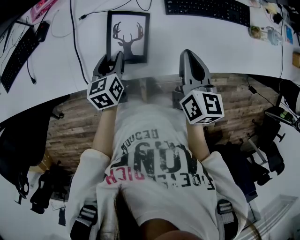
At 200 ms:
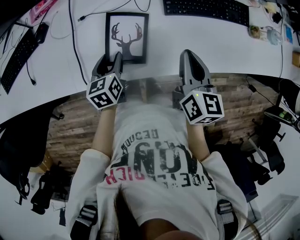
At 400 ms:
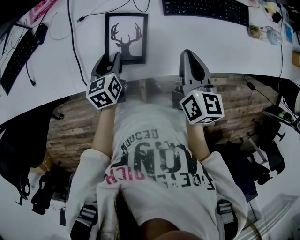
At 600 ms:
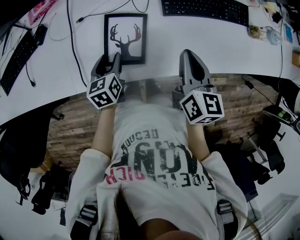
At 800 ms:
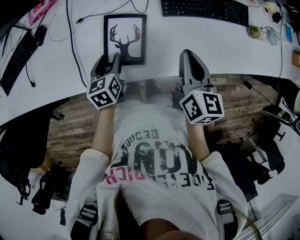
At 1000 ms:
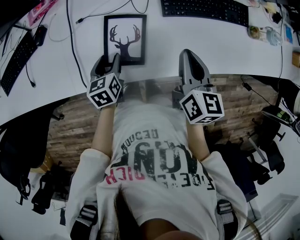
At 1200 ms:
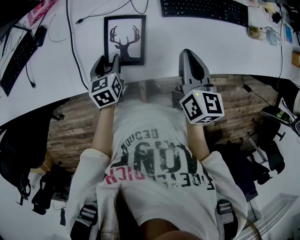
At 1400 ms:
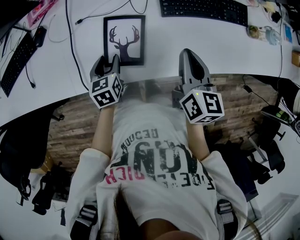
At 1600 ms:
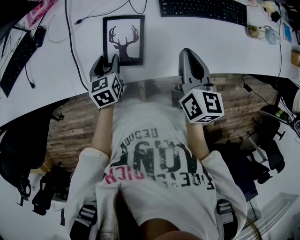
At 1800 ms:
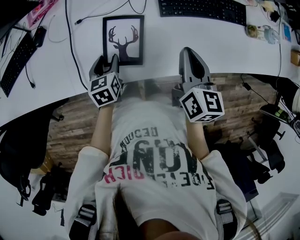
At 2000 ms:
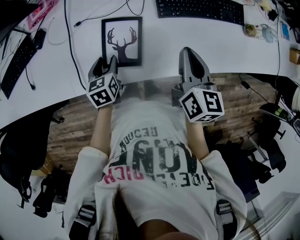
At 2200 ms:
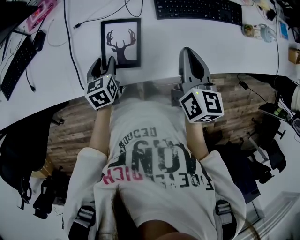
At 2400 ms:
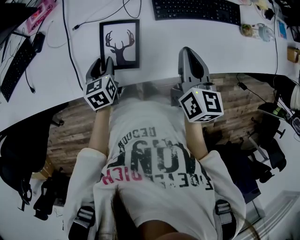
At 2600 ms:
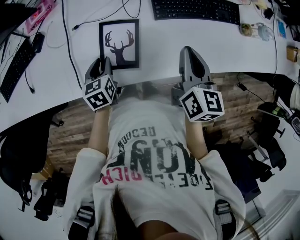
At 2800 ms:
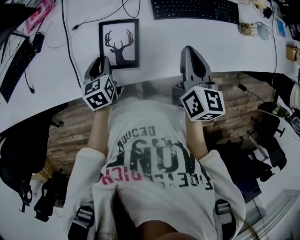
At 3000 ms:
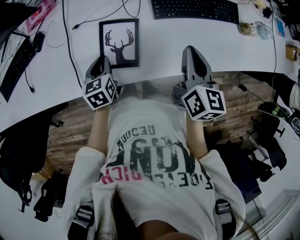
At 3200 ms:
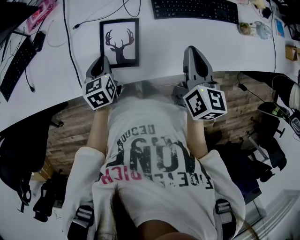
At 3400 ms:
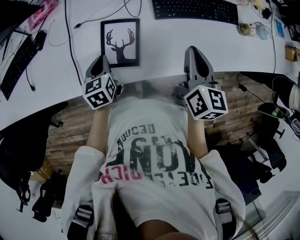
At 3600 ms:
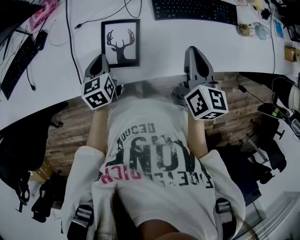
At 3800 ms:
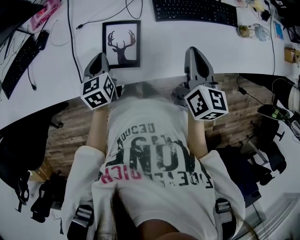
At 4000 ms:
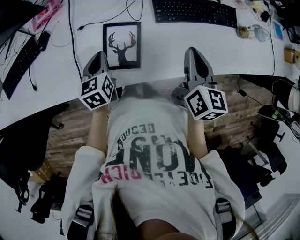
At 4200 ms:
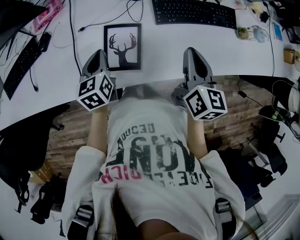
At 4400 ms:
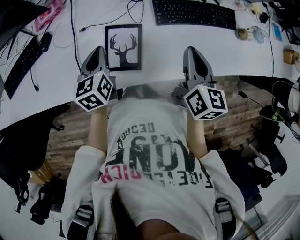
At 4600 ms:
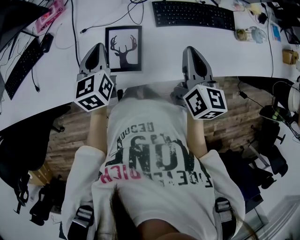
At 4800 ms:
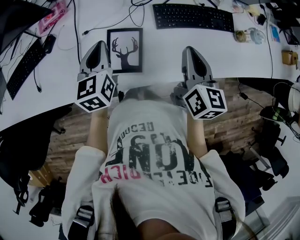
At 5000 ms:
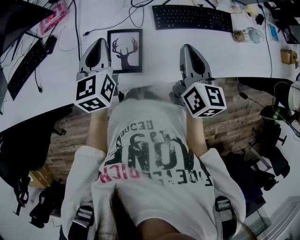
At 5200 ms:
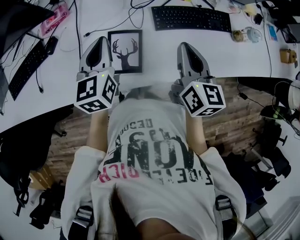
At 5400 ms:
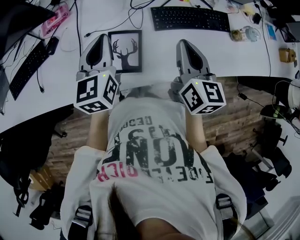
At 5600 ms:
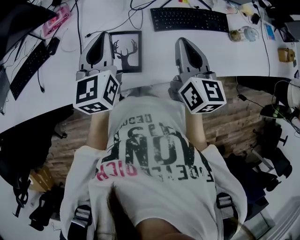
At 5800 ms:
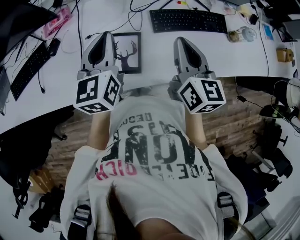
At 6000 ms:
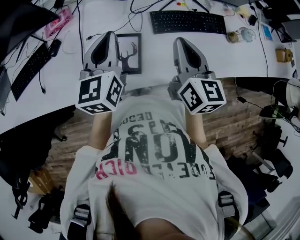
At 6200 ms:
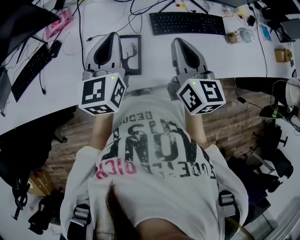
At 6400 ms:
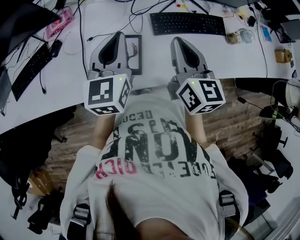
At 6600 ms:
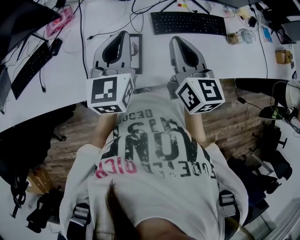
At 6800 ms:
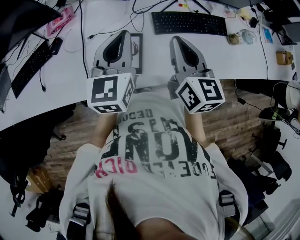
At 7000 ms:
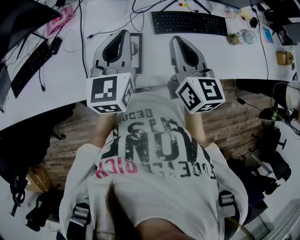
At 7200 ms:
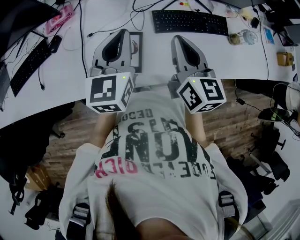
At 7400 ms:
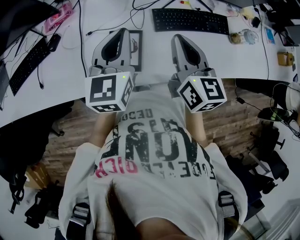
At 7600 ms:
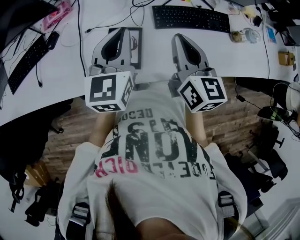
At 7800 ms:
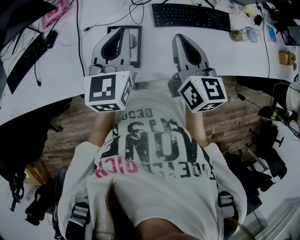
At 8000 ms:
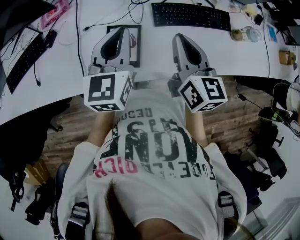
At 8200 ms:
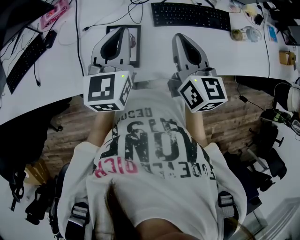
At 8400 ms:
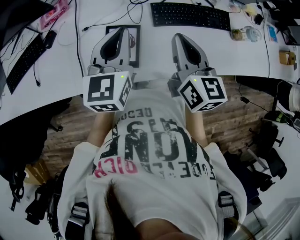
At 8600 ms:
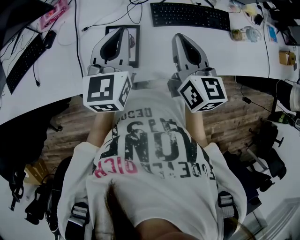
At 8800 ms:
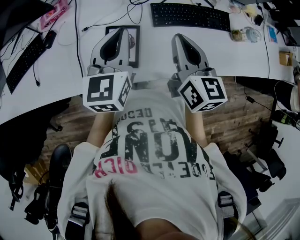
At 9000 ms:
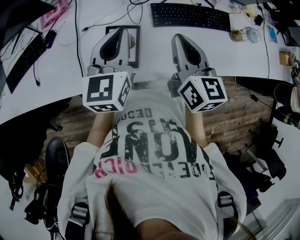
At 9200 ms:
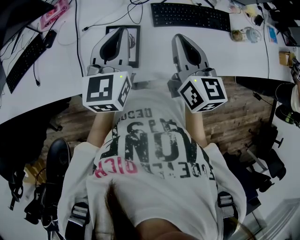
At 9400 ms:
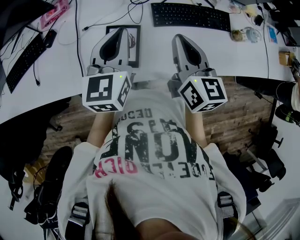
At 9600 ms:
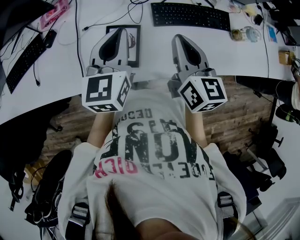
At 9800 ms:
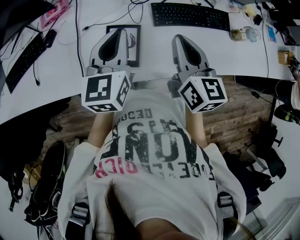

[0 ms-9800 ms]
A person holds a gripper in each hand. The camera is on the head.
0 ms to 1400 ms: The grippers move only a little.
1400 ms to 2800 ms: The left gripper closes up.
2800 ms to 4200 ms: The left gripper travels upward by approximately 5 cm, and closes up.
4200 ms to 5600 ms: The right gripper moves upward, roughly 5 cm, while the left gripper moves upward, roughly 15 cm, and turns by roughly 20 degrees.
5600 ms to 7000 ms: The left gripper changes place by roughly 5 cm.
7000 ms to 8400 ms: There are only small adjustments of the grippers.
8400 ms to 9800 ms: The two grippers keep their place.

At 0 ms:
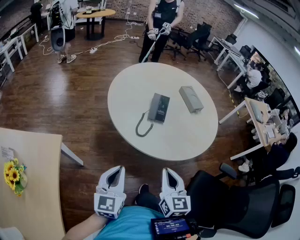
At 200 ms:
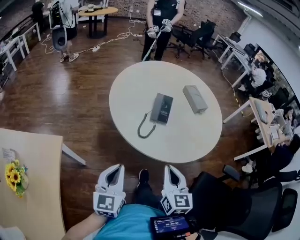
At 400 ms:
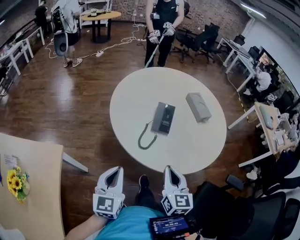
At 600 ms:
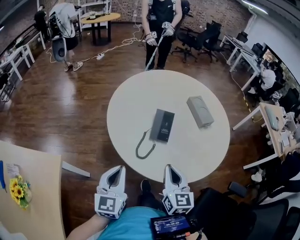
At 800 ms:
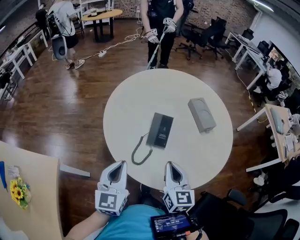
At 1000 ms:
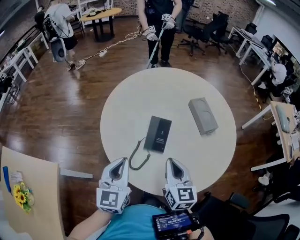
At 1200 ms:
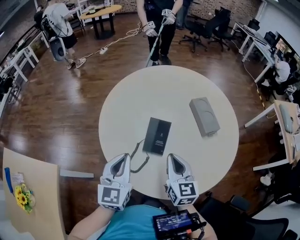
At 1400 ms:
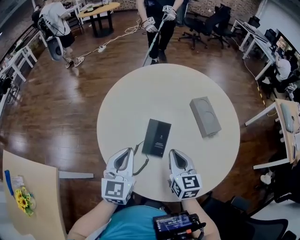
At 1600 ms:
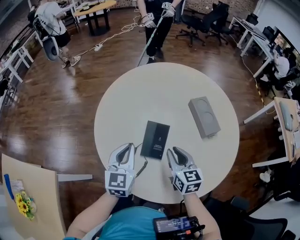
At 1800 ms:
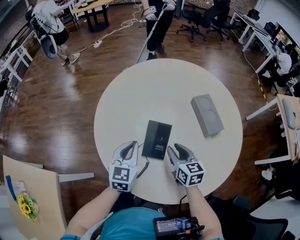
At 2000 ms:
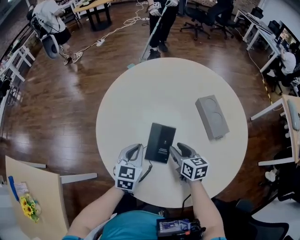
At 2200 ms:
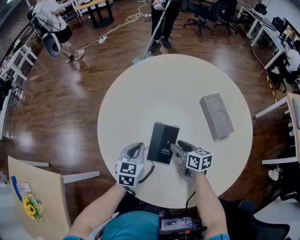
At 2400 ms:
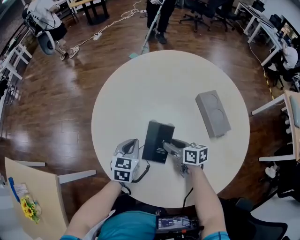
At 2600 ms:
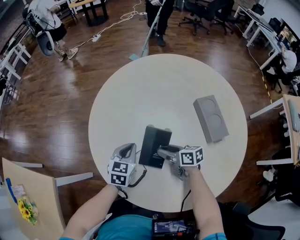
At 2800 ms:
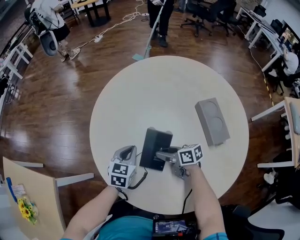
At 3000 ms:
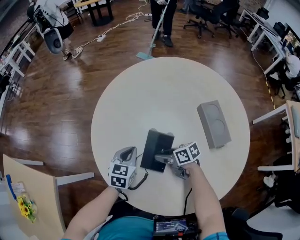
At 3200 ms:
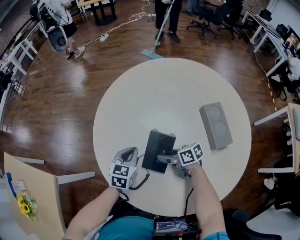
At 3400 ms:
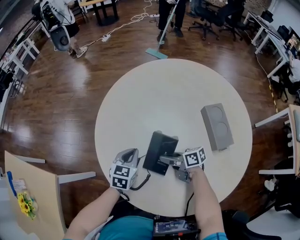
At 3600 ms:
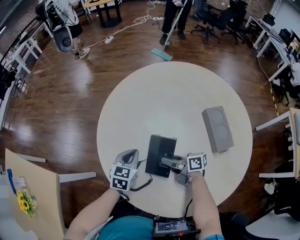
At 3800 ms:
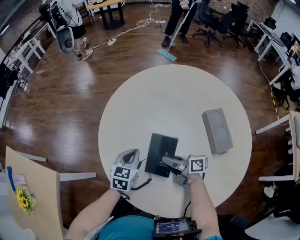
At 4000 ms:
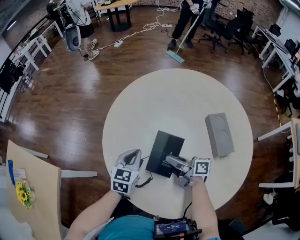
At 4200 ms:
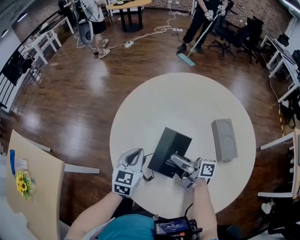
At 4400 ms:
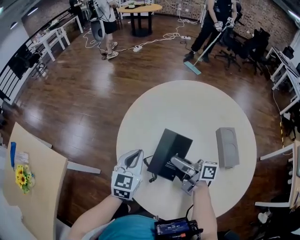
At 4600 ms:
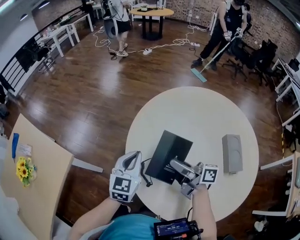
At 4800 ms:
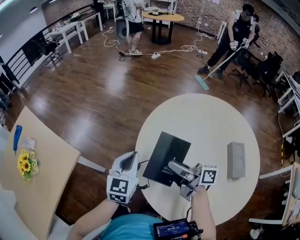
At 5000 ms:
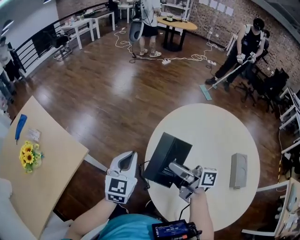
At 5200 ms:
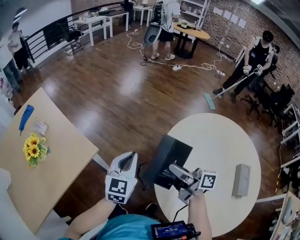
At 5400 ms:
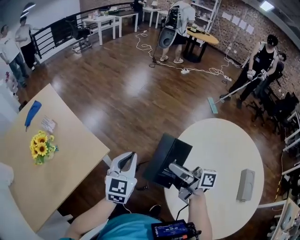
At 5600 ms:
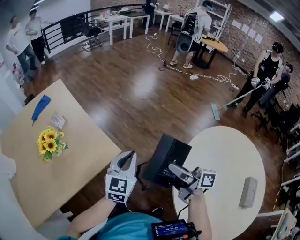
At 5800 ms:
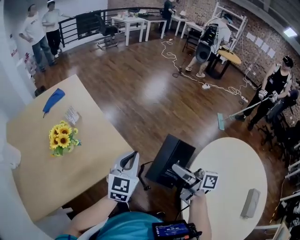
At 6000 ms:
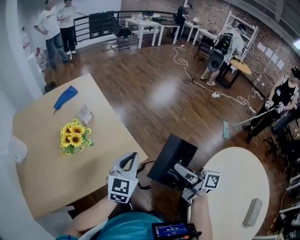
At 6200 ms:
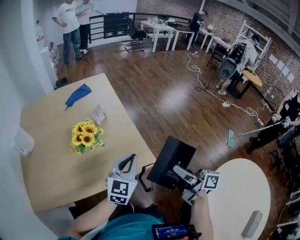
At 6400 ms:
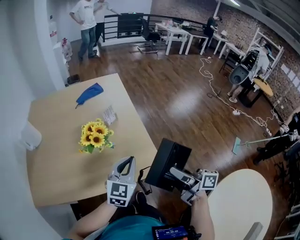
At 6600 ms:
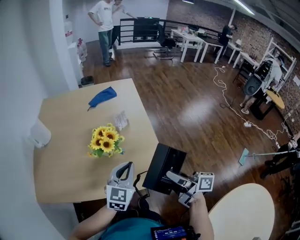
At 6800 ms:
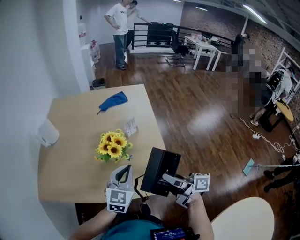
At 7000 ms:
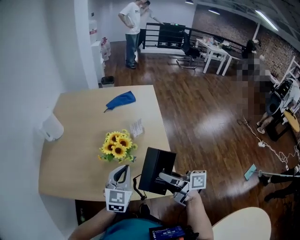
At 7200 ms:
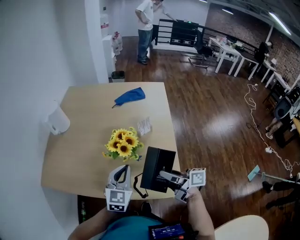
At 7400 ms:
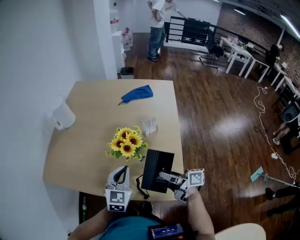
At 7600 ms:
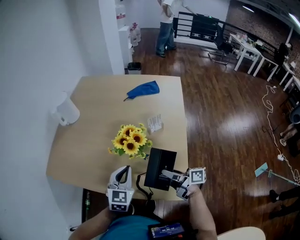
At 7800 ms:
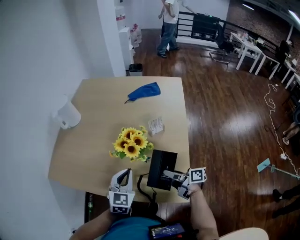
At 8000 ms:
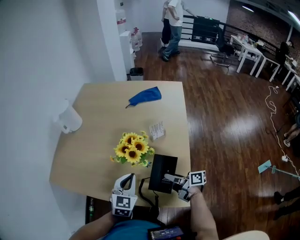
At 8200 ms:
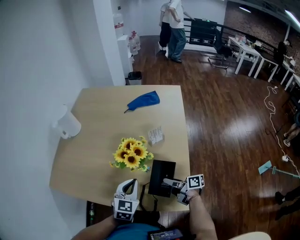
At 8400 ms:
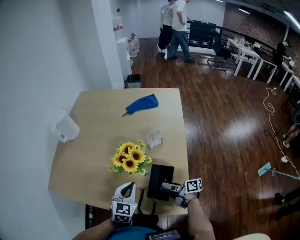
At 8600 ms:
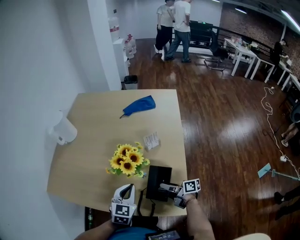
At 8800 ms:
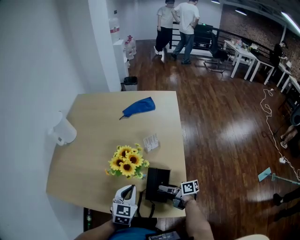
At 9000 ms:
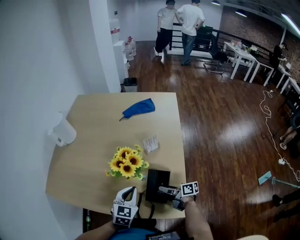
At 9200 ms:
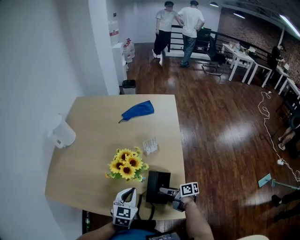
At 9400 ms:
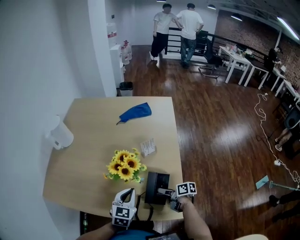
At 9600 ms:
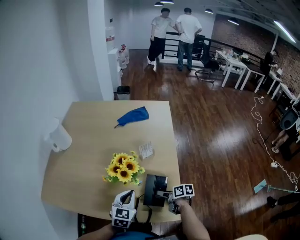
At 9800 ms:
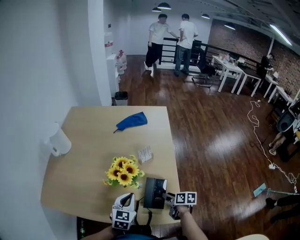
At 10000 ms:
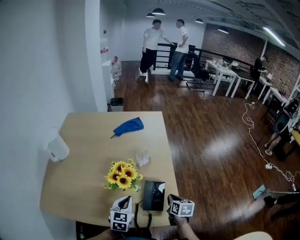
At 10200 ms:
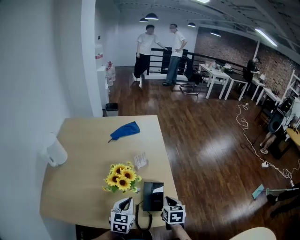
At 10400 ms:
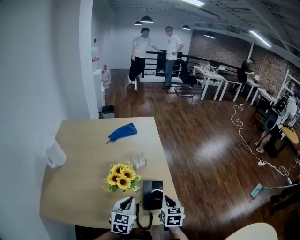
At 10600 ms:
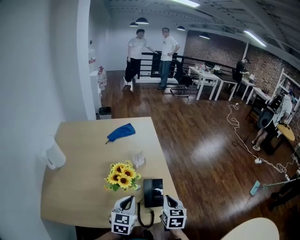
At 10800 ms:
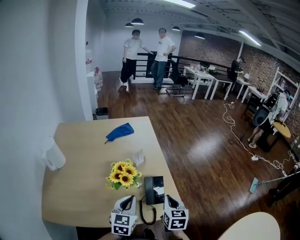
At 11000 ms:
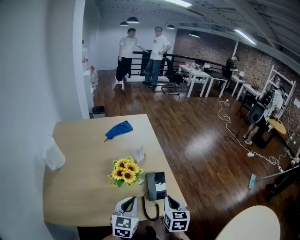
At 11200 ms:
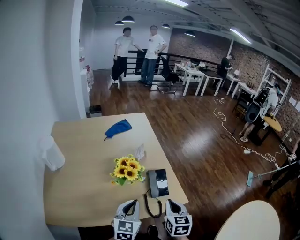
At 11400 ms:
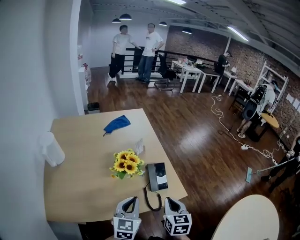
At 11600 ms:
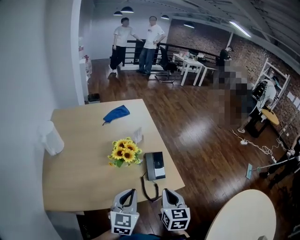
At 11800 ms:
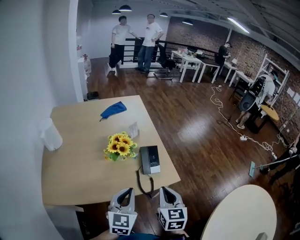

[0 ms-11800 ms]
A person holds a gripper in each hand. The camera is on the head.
0 ms to 1400 ms: The two grippers go some 35 cm forward.
1400 ms to 3000 ms: The grippers both shift downward by about 20 cm. The right gripper changes its angle by about 60 degrees, and opens up. Meanwhile the left gripper swivels about 30 degrees.
3000 ms to 4400 ms: The left gripper goes about 15 cm upward and to the left, and swivels approximately 20 degrees. Meanwhile the right gripper is displaced upward by about 20 cm, and tips its fingers upward by roughly 30 degrees.
4400 ms to 6000 ms: Both grippers are carried some 50 cm. The left gripper changes its angle by about 40 degrees; the right gripper swivels about 30 degrees.
6000 ms to 7400 ms: The right gripper moves about 35 cm, and turns by approximately 50 degrees. Meanwhile the left gripper moves some 25 cm, and swivels about 50 degrees.
7400 ms to 8800 ms: The left gripper is displaced downward by some 5 cm. Meanwhile the right gripper goes approximately 15 cm downward.
8800 ms to 10400 ms: The right gripper shifts some 15 cm upward, changes its angle by some 80 degrees, and closes; the left gripper is displaced upward by roughly 5 cm.
10400 ms to 11800 ms: Both grippers travel together backward and upward, roughly 20 cm.

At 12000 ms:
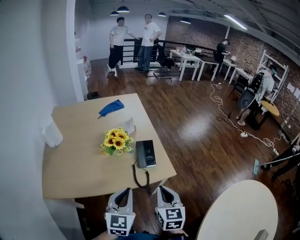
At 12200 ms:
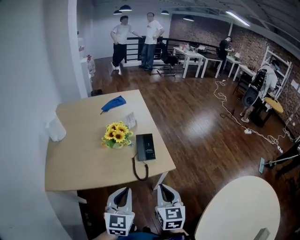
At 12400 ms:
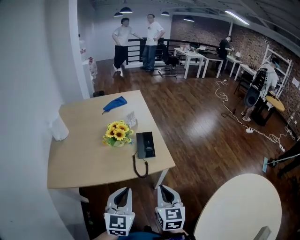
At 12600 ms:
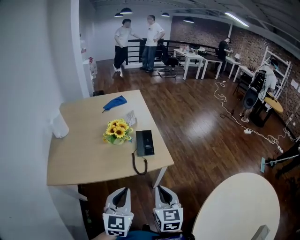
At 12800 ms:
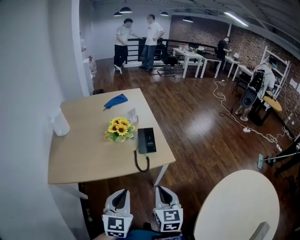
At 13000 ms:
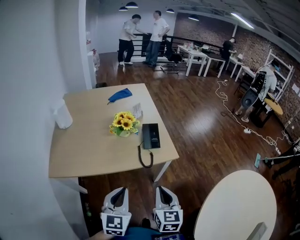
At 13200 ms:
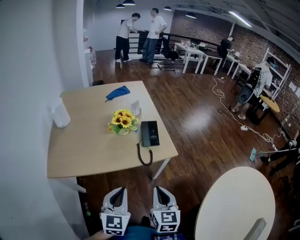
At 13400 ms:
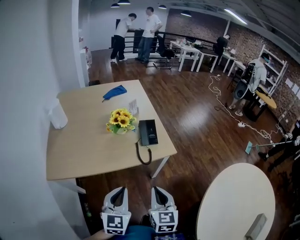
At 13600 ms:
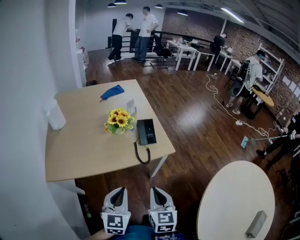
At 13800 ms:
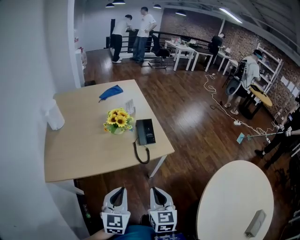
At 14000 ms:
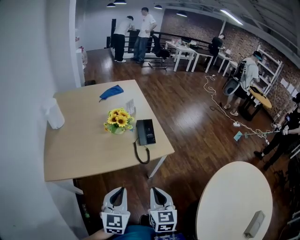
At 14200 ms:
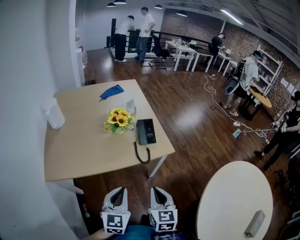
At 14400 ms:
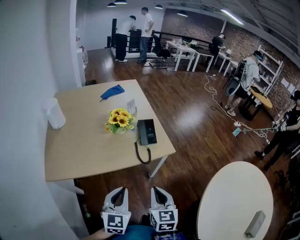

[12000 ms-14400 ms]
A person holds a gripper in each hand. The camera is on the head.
12000 ms to 13200 ms: Both grippers travel together backward, approximately 15 cm.
13200 ms to 14400 ms: The grippers make only small movements.
